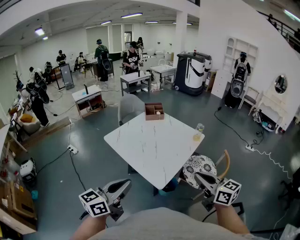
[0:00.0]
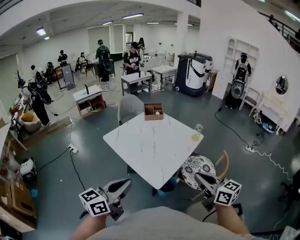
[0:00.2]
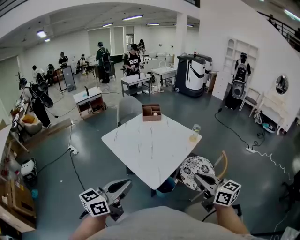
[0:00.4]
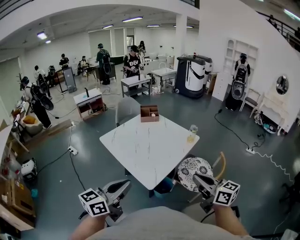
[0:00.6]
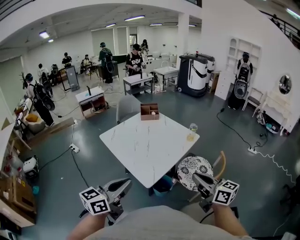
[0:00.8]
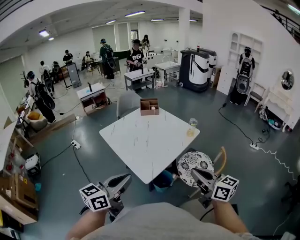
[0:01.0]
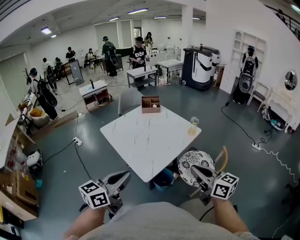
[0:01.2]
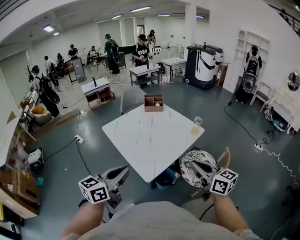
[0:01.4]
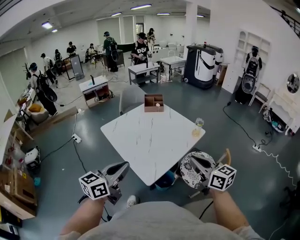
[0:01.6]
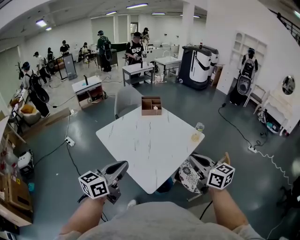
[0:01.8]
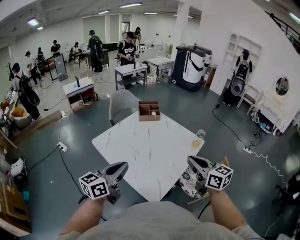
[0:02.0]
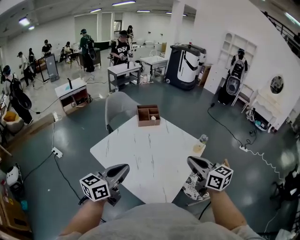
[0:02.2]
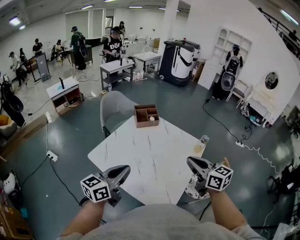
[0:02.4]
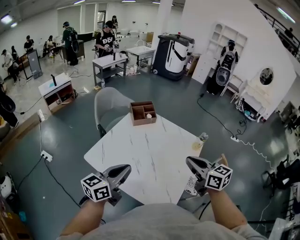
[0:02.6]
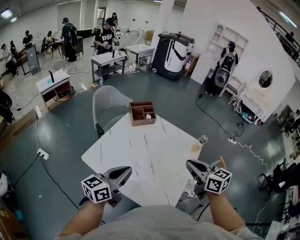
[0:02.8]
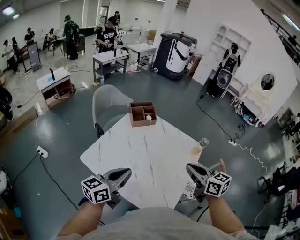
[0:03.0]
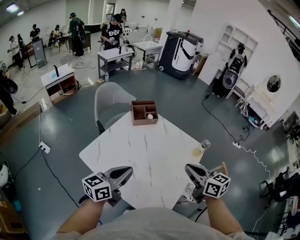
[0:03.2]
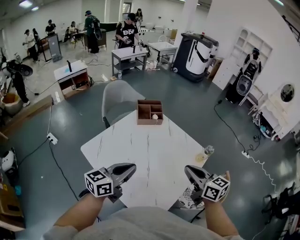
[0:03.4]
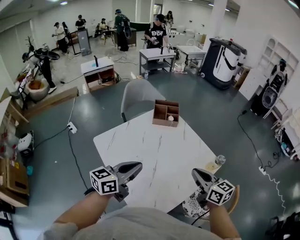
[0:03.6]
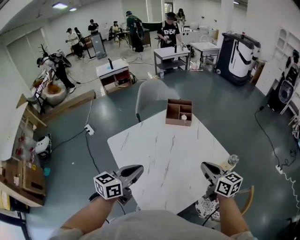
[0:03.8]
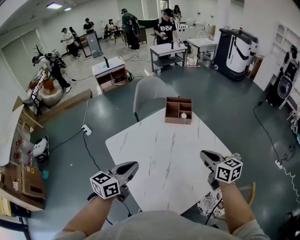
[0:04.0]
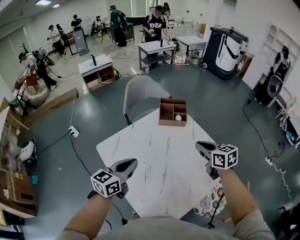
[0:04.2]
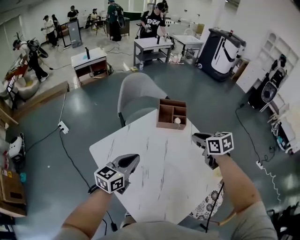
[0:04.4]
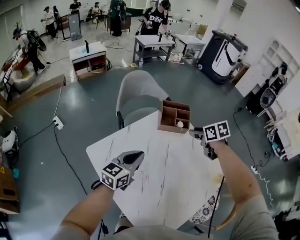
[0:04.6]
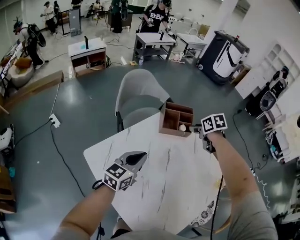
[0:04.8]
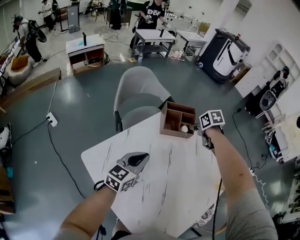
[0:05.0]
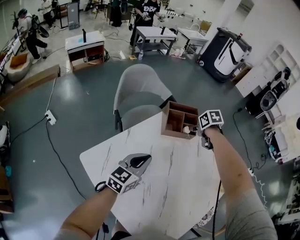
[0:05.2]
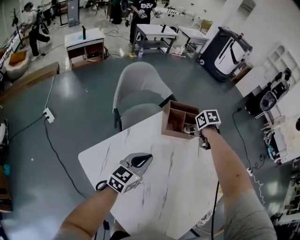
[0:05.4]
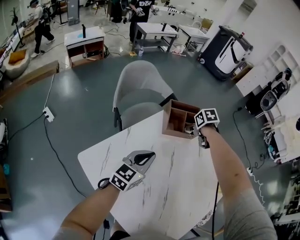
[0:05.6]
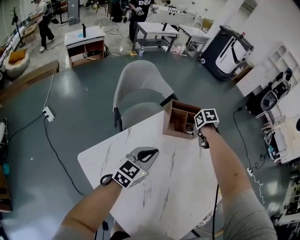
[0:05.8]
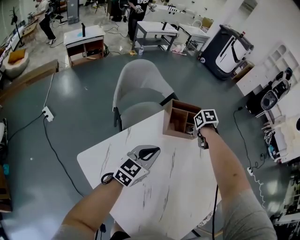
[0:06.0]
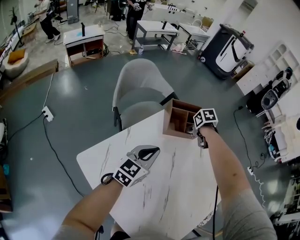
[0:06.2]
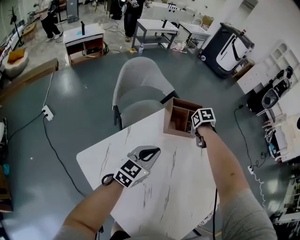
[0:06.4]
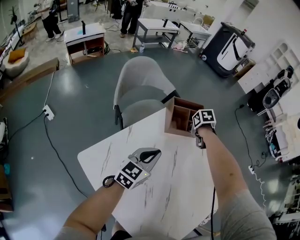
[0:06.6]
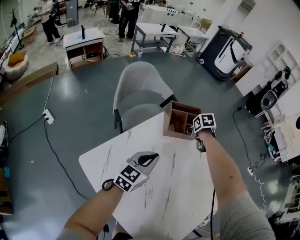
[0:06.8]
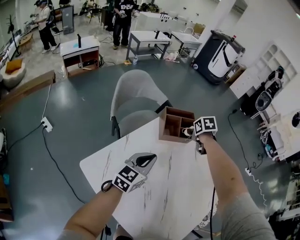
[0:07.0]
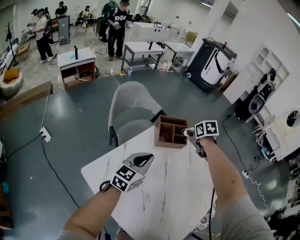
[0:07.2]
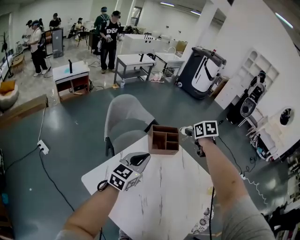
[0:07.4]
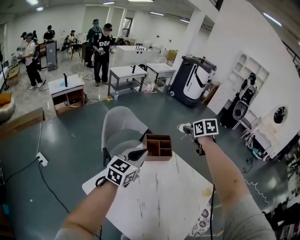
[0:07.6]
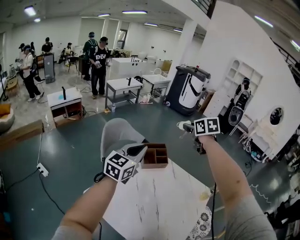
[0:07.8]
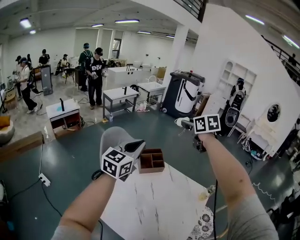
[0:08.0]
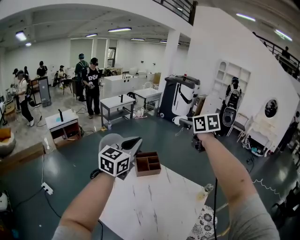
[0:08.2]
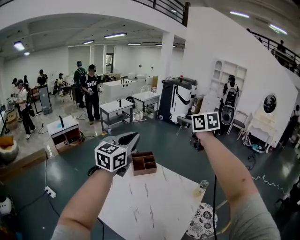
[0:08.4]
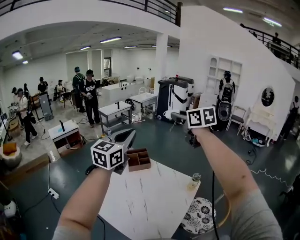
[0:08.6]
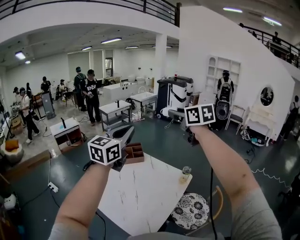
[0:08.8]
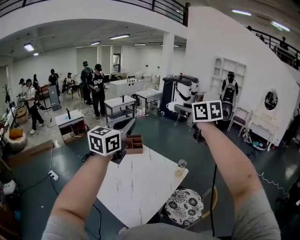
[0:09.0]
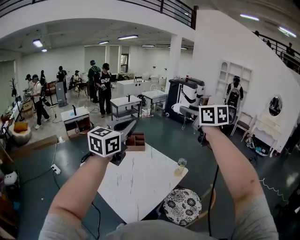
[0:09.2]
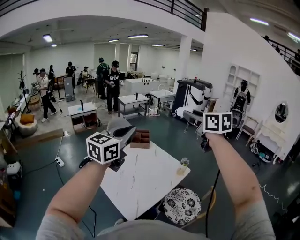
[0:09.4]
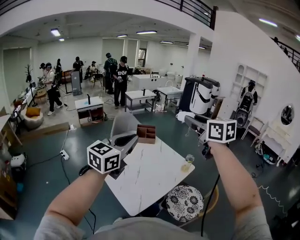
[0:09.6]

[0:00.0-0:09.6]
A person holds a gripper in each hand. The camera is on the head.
0:00.0 to 0:01.6: The right gripper is displaced forward and to the right by roughly 10 cm. Meanwhile the left gripper goes approximately 10 cm to the right and forward.
0:01.6 to 0:03.2: Both grippers travel together forward and to the left, roughly 30 cm. The left gripper turns by about 20 degrees.
0:03.2 to 0:04.8: The right gripper heads forward, covering roughly 40 cm, points its fingers about 40 degrees further downward, and opens; the left gripper goes about 25 cm forward and downward, and swivels about 20 degrees.
0:04.8 to 0:06.4: The left gripper shifts by some 10 cm; the right gripper travels downward by roughly 15 cm, and turns by approximately 20 degrees.
0:06.4 to 0:08.0: The two grippers go approximately 40 cm upward. The right gripper tilts its fingers roughly 50 degrees upward.
0:08.0 to 0:09.6: Both grippers are carried backward and to the right, roughly 40 cm. The right gripper changes its angle by approximately 30 degrees.

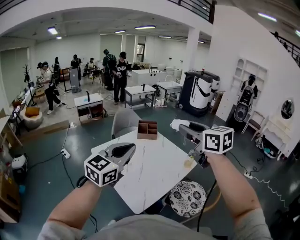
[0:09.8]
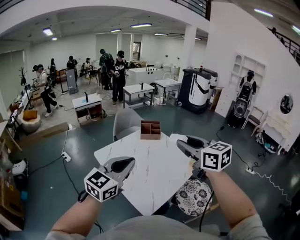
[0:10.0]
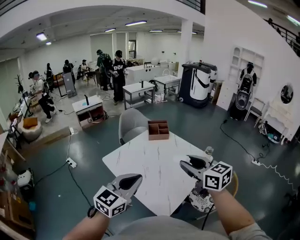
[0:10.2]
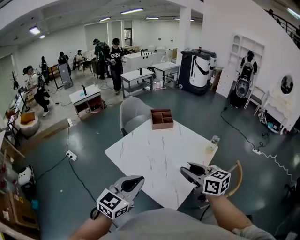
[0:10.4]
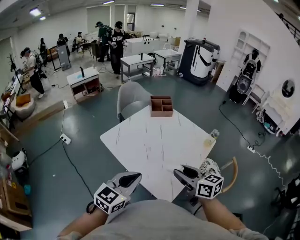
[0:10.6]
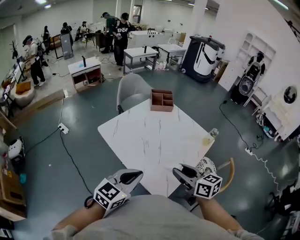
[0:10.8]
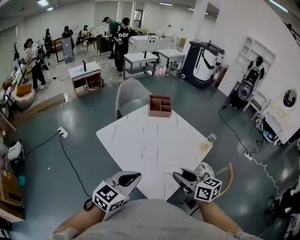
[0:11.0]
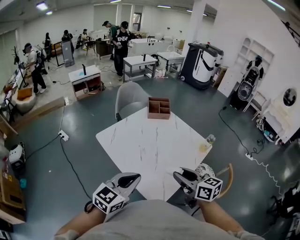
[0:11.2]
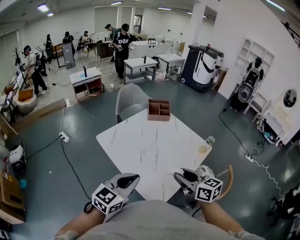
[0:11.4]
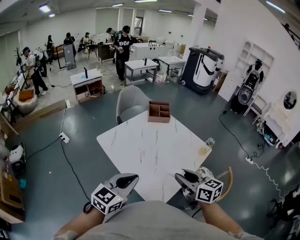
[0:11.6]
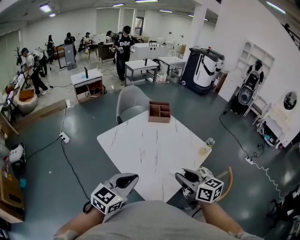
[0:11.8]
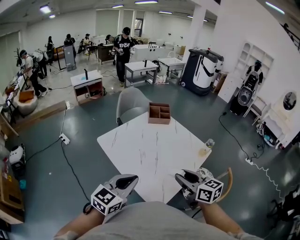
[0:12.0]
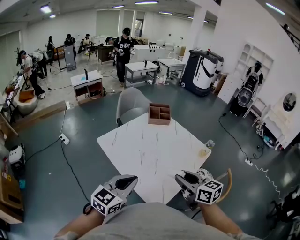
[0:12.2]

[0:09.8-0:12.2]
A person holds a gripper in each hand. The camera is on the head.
0:09.8 to 0:11.0: The right gripper shifts roughly 30 cm downward, and turns by about 20 degrees, while the left gripper goes about 20 cm downward and to the left.
0:11.0 to 0:12.2: There are only small adjustments of the grippers.

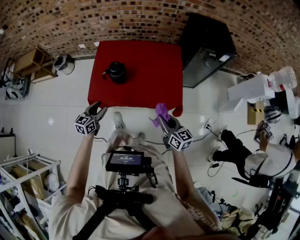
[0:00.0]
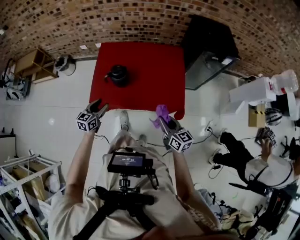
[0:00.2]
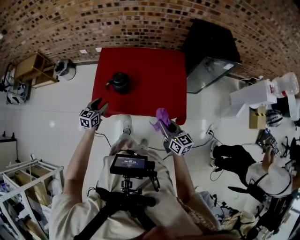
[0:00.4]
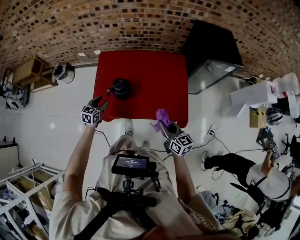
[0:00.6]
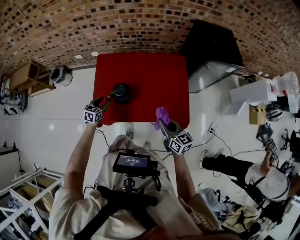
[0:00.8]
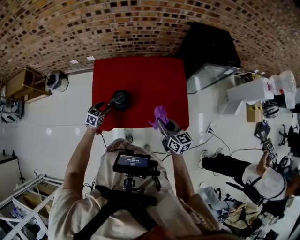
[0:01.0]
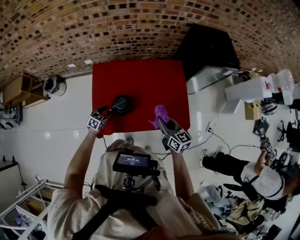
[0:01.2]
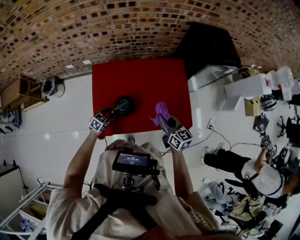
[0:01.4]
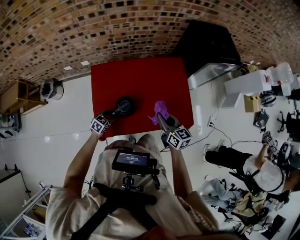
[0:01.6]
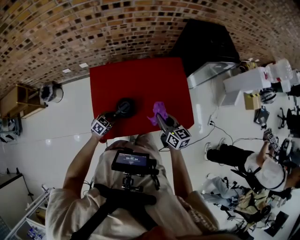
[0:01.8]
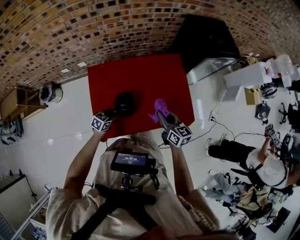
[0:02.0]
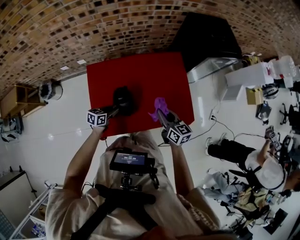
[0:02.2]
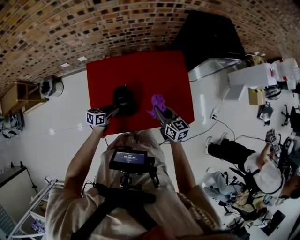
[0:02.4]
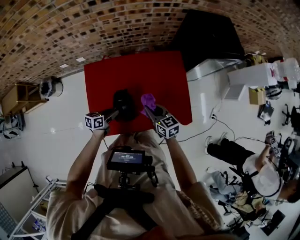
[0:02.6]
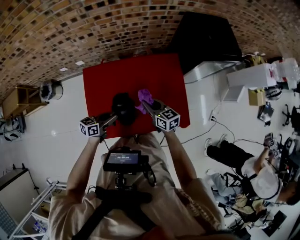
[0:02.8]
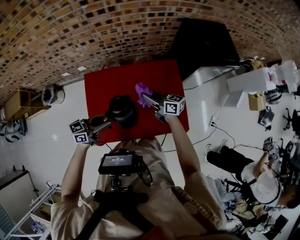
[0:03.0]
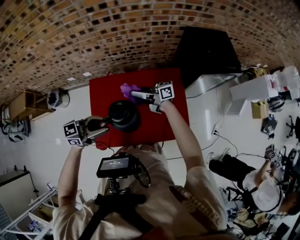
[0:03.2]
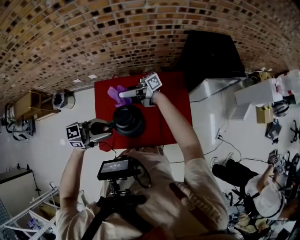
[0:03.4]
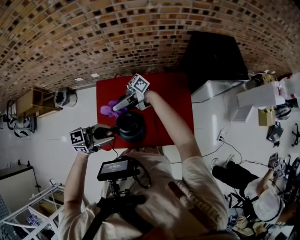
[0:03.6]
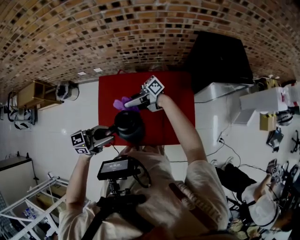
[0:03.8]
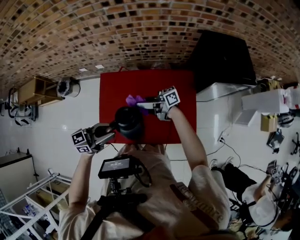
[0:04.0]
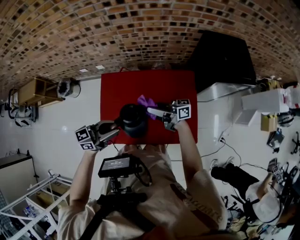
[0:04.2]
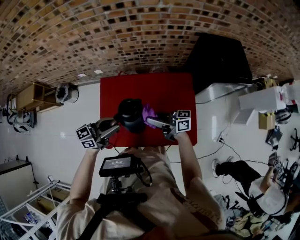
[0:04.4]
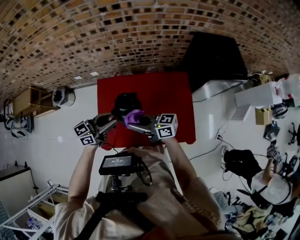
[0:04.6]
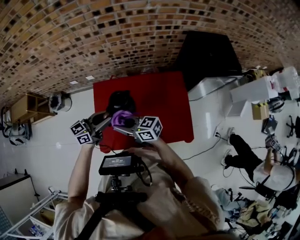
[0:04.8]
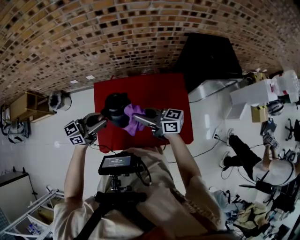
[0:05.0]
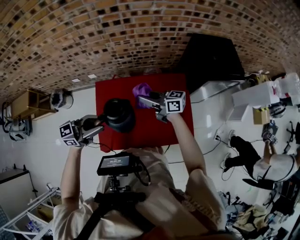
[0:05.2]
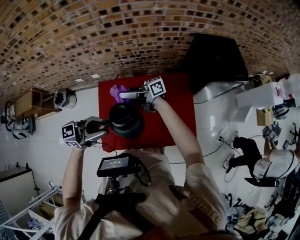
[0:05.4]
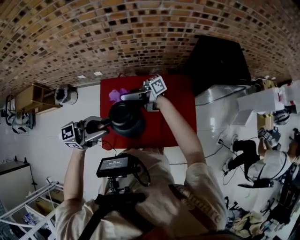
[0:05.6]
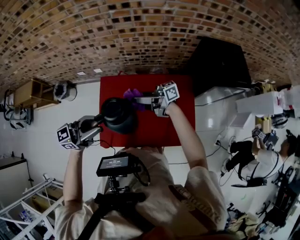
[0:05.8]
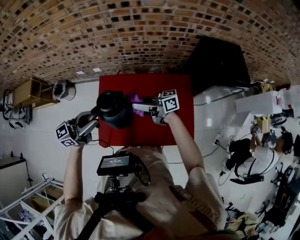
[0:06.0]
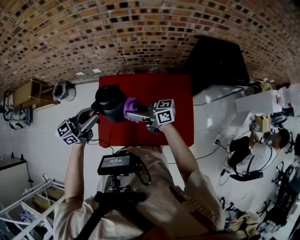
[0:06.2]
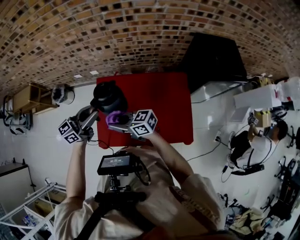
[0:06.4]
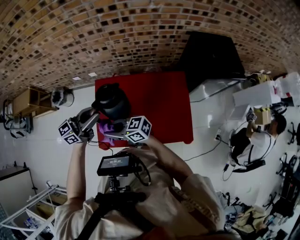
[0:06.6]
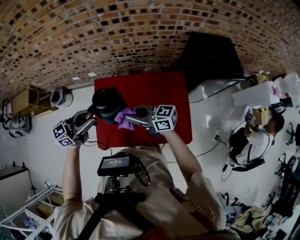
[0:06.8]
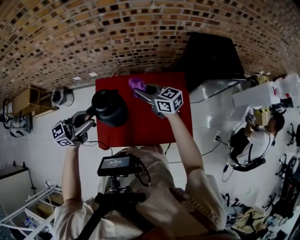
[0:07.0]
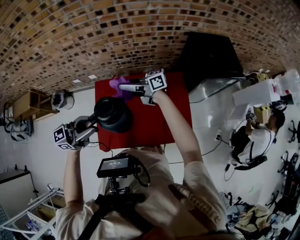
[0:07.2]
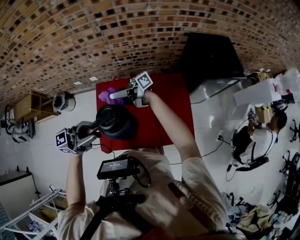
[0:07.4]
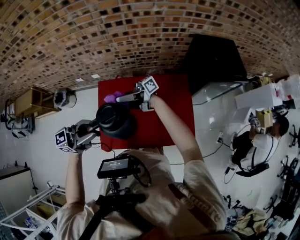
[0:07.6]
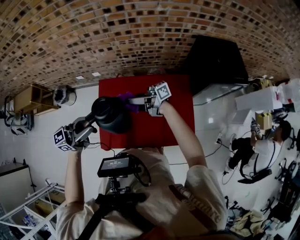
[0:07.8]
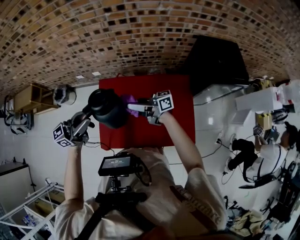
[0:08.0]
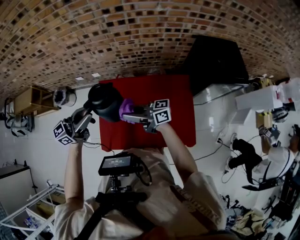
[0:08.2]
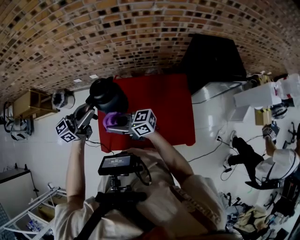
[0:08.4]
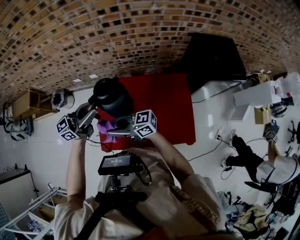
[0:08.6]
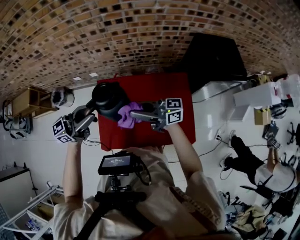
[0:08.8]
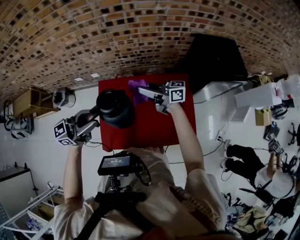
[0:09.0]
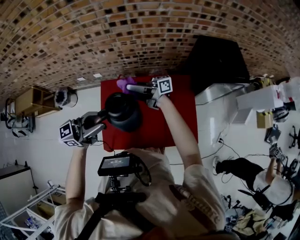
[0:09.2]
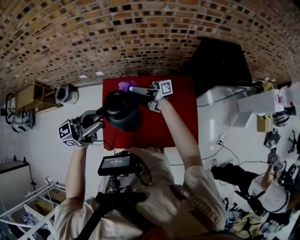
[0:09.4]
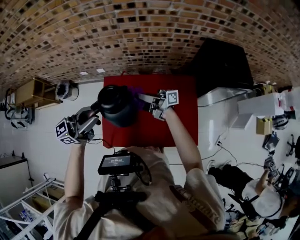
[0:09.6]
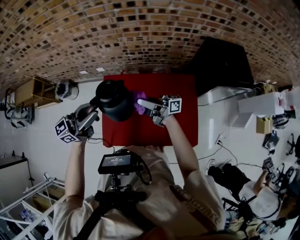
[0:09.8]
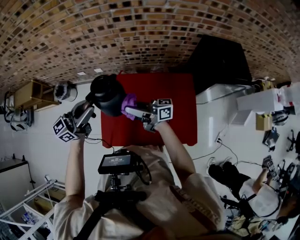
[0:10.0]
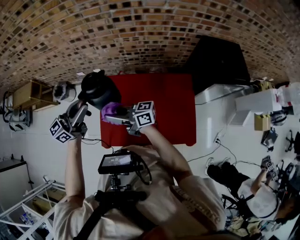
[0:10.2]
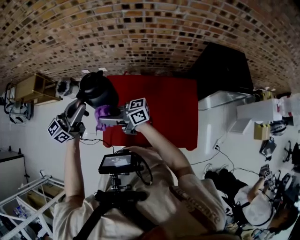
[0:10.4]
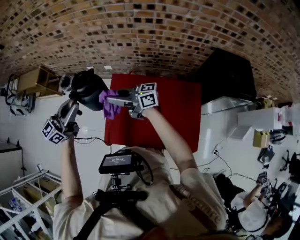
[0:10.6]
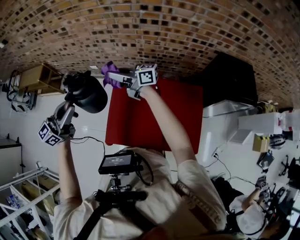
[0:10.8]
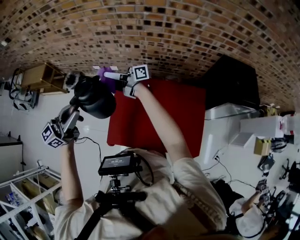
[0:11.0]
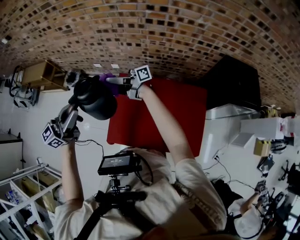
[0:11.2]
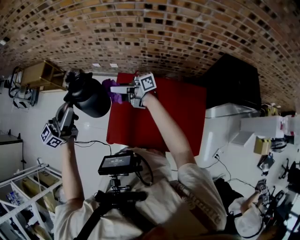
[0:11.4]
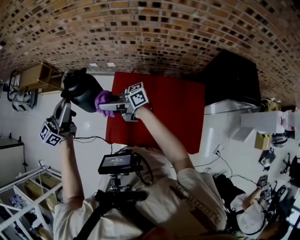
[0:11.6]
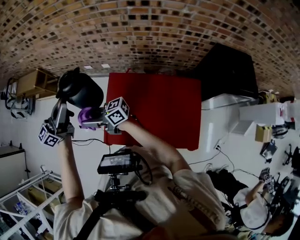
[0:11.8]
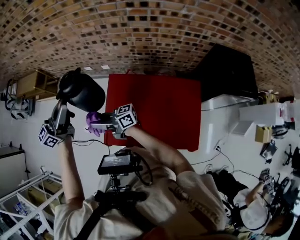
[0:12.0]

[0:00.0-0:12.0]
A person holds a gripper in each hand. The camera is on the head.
0:00.0 to 0:01.6: The right gripper moves about 25 cm, while the left gripper shifts by about 30 cm, and rotates approximately 40 degrees.
0:01.6 to 0:03.0: The right gripper ends up roughly 15 cm from where it was, and turns by approximately 30 degrees; the left gripper moves upward, about 25 cm, and angles its fingers upward, by about 40 degrees.
0:03.0 to 0:04.4: The right gripper swivels some 30 degrees; the left gripper heads upward, covering roughly 5 cm.
0:04.4 to 0:06.0: The left gripper changes place by some 10 cm.
0:06.0 to 0:07.6: The right gripper changes its angle by roughly 30 degrees. Meanwhile the left gripper shifts by about 5 cm.
0:07.6 to 0:09.0: The right gripper shifts by roughly 10 cm, and swivels some 40 degrees.
0:09.0 to 0:10.4: The left gripper ends up approximately 10 cm from where it was, and rotates about 30 degrees. The right gripper shifts by some 25 cm, and rotates about 20 degrees.
0:10.4 to 0:12.0: The left gripper changes place by about 10 cm.
